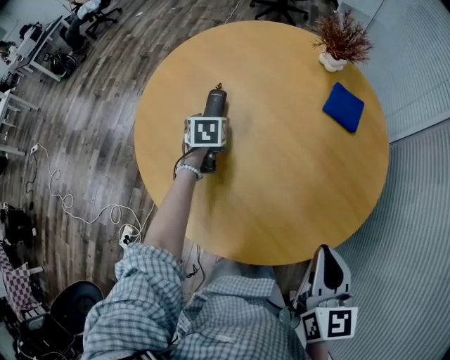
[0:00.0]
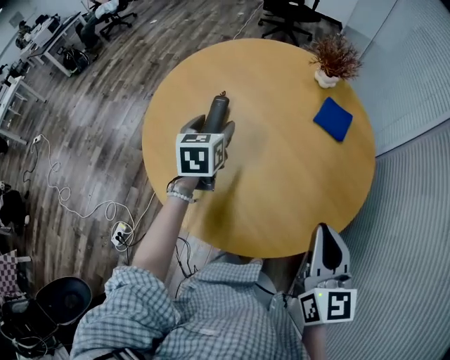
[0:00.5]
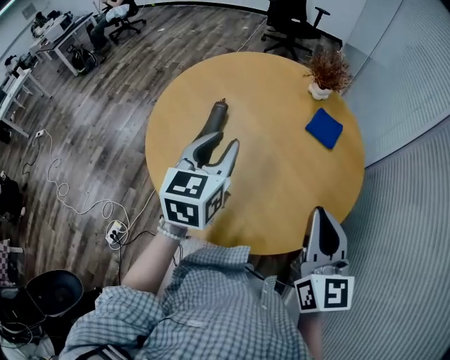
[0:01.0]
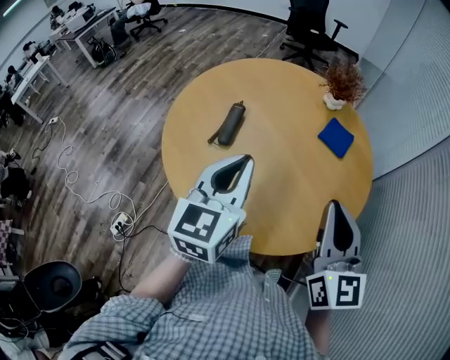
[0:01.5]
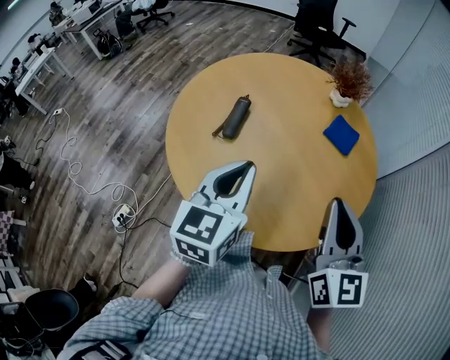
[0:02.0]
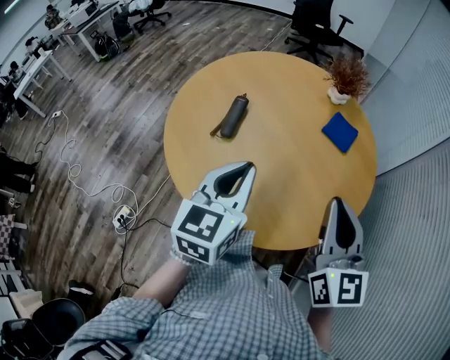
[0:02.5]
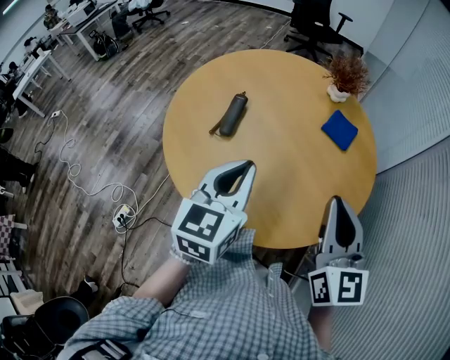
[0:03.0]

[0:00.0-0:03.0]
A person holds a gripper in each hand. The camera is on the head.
0:00.0 to 0:01.5: The right gripper moves upward, some 15 cm, and rotates about 30 degrees. The left gripper moves upward and backward, roughly 40 cm, angles its fingers upward, by some 40 degrees, and closes its fingers.
0:01.5 to 0:03.0: The grippers stay close to where they were, moving slightly.

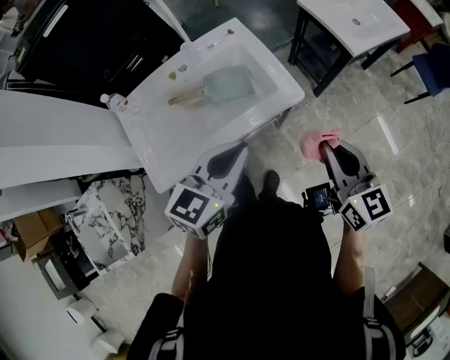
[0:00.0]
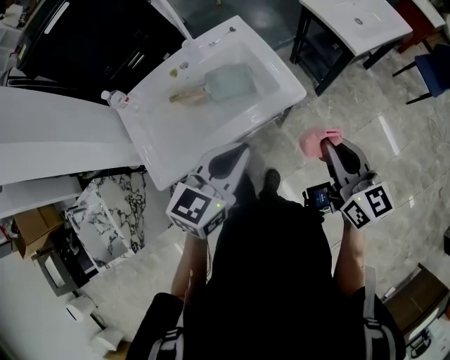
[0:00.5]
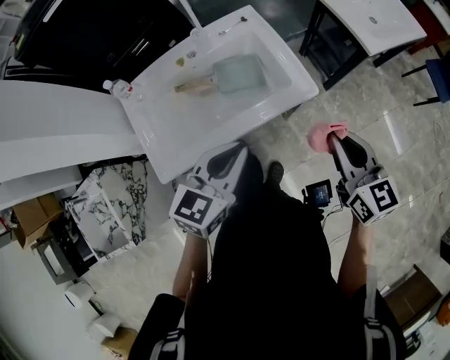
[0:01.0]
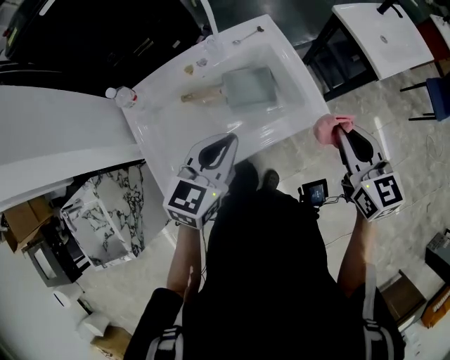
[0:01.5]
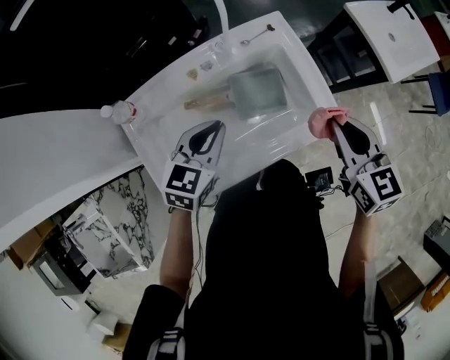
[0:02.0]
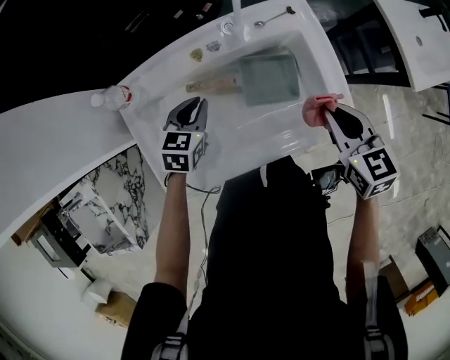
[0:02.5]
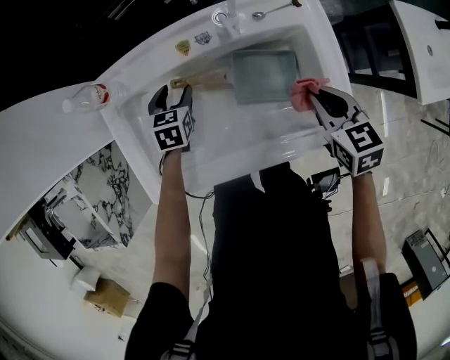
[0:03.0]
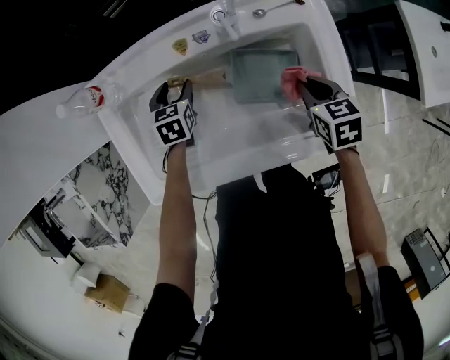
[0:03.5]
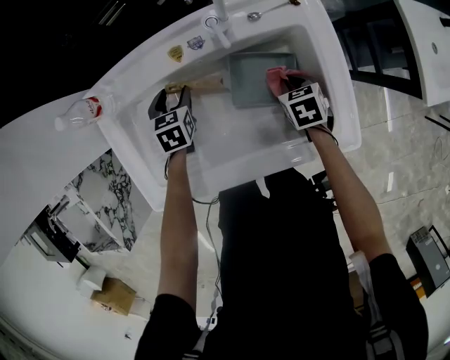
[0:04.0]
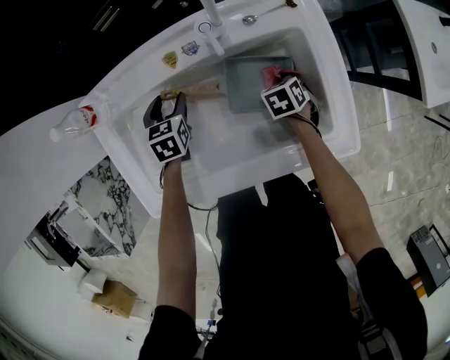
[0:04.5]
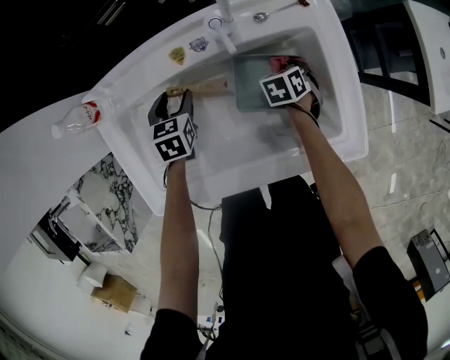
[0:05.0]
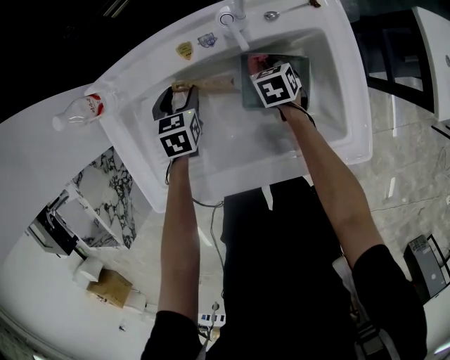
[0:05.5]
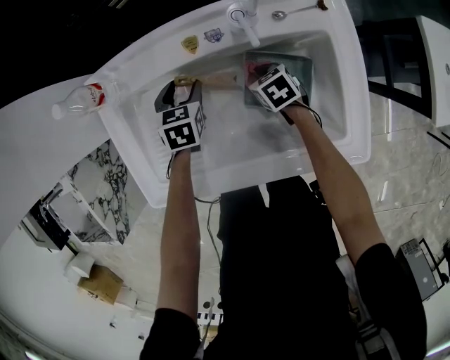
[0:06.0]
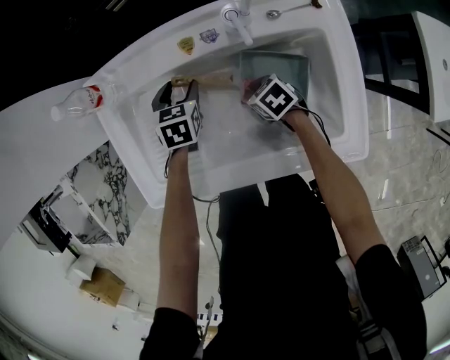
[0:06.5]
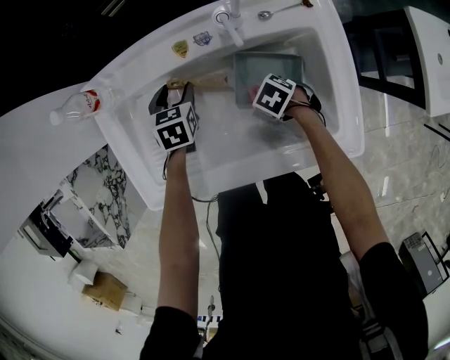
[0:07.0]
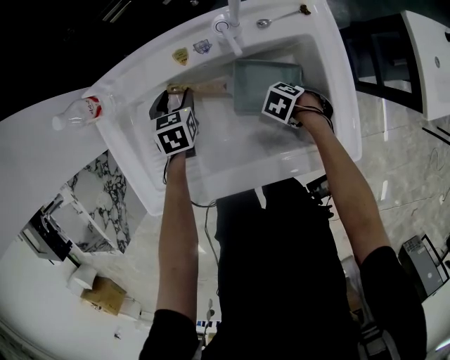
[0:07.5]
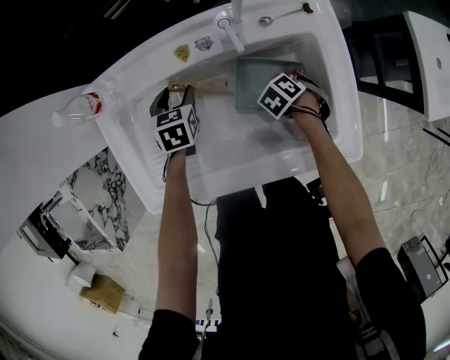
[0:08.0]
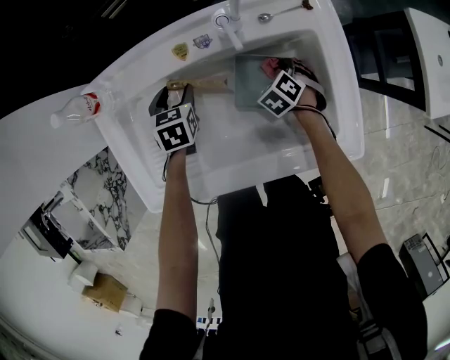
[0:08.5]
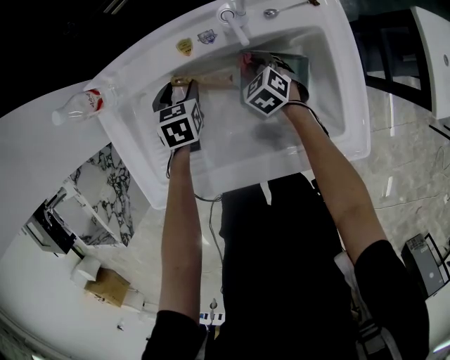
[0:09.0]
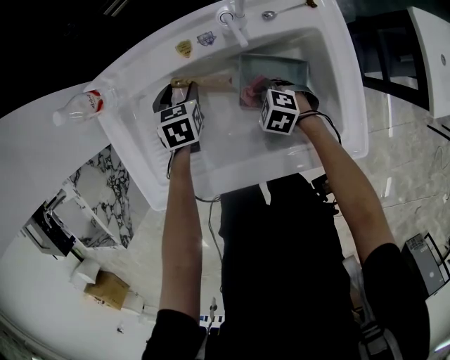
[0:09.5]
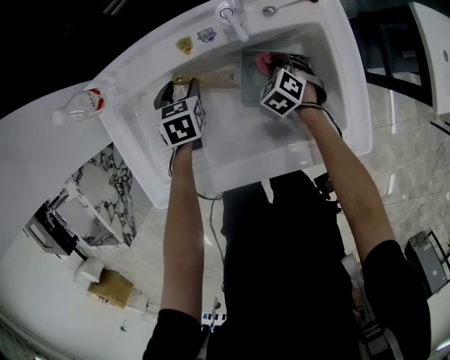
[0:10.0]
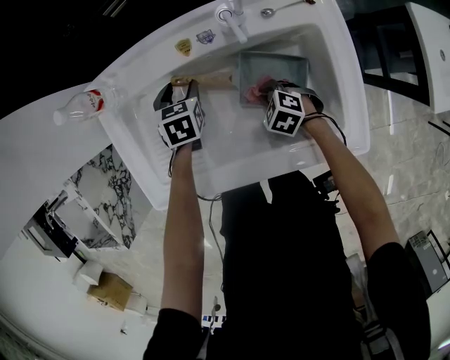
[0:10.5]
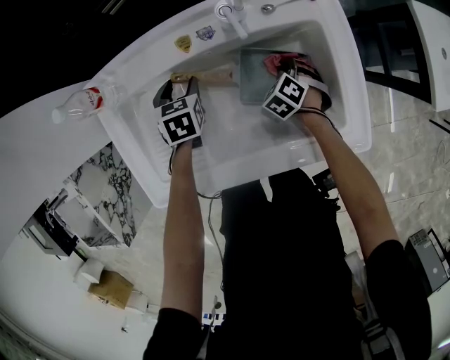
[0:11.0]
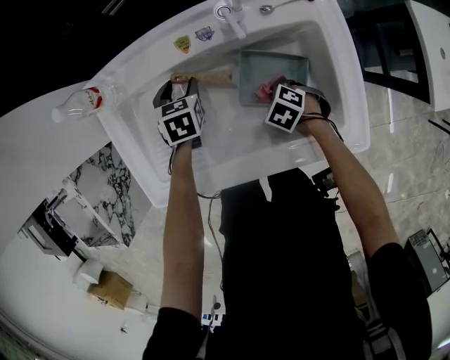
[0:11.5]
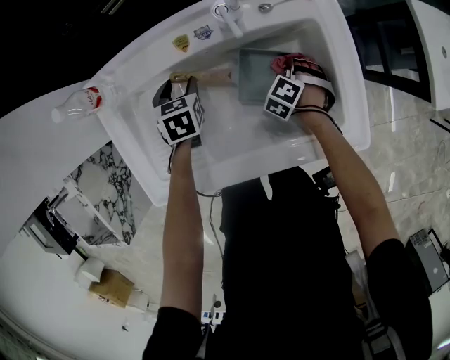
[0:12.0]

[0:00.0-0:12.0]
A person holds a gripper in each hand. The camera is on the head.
0:00.0 to 0:02.0: The right gripper goes about 25 cm forward and to the left; the left gripper travels to the left, forward and downward by approximately 30 cm.
0:02.0 to 0:04.0: Both grippers travel together downward, approximately 30 cm. The left gripper swivels about 50 degrees, and opens up; the right gripper points its fingers roughly 40 degrees further downward.
0:04.0 to 0:06.0: The right gripper moves some 15 cm.
0:06.0 to 0:08.0: The right gripper moves some 15 cm, and swivels some 40 degrees.
0:08.0 to 0:10.0: The right gripper turns by about 30 degrees.
0:10.0 to 0:12.0: The right gripper turns by about 30 degrees.

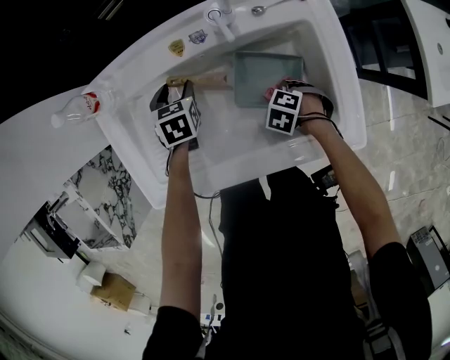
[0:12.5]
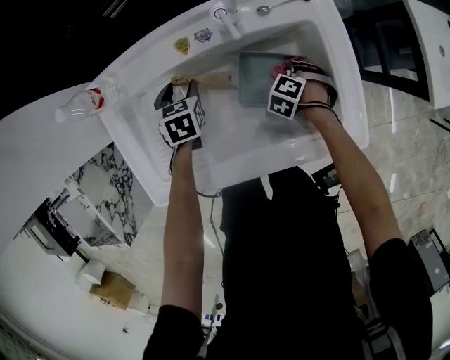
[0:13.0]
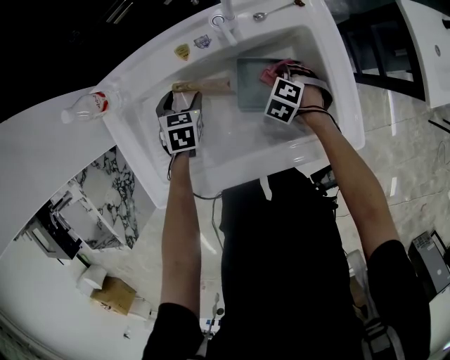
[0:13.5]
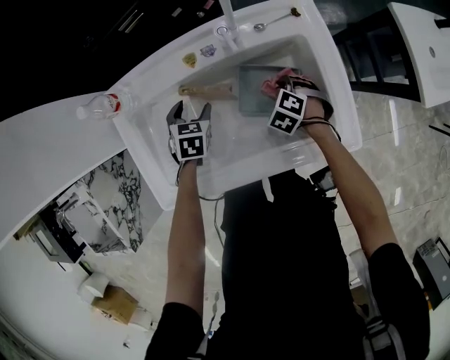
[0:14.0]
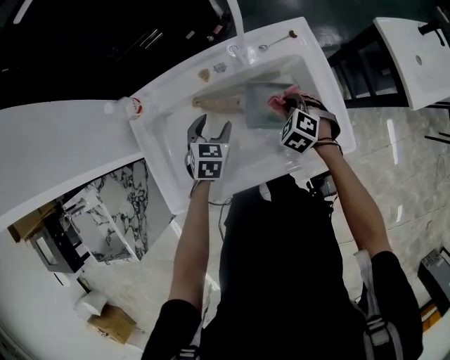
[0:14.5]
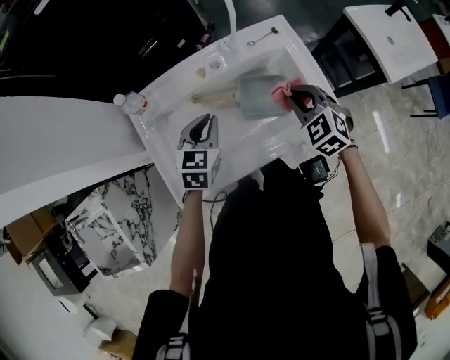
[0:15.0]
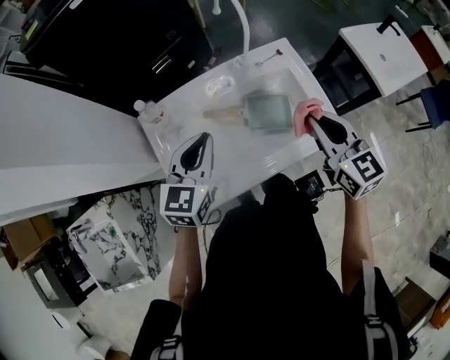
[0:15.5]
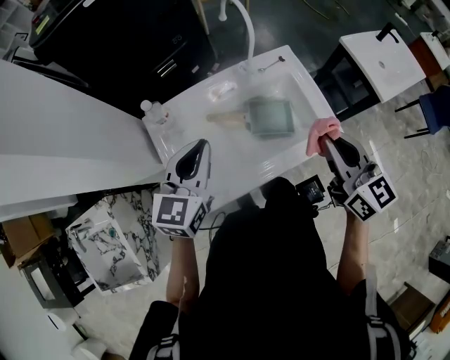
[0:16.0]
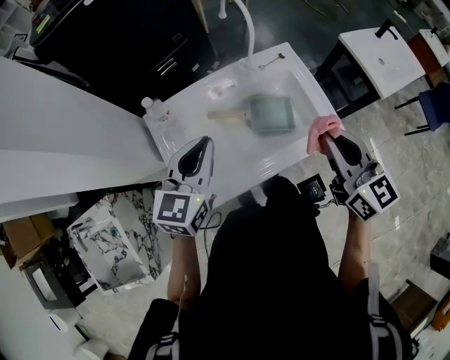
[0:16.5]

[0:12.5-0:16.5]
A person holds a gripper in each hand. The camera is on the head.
0:12.5 to 0:14.5: The right gripper travels upward by about 15 cm, and turns by some 30 degrees. Meanwhile the left gripper moves about 15 cm, and changes its angle by about 20 degrees.
0:14.5 to 0:16.5: The right gripper shifts approximately 40 cm upward and backward, and tips its fingers upward by approximately 50 degrees. The left gripper heads upward, covering roughly 30 cm, points its fingers some 40 degrees further upward, and closes its fingers.

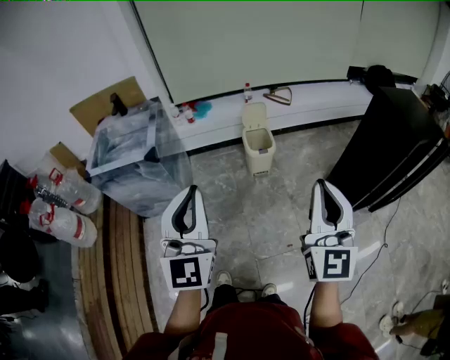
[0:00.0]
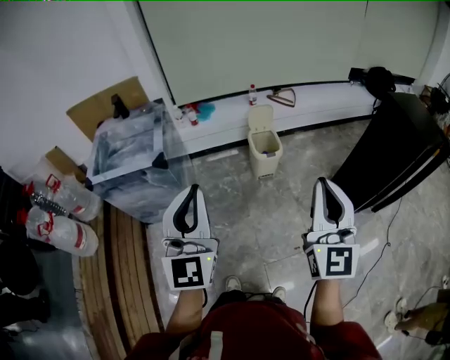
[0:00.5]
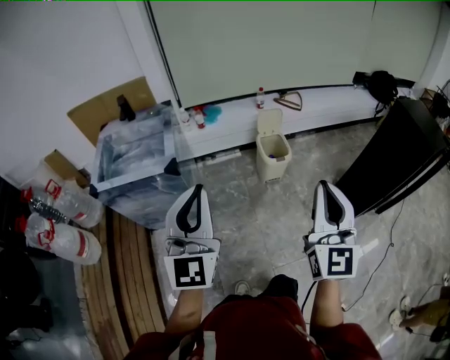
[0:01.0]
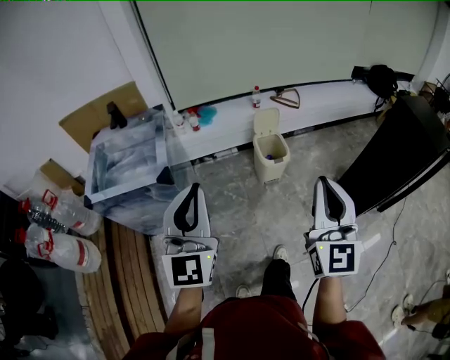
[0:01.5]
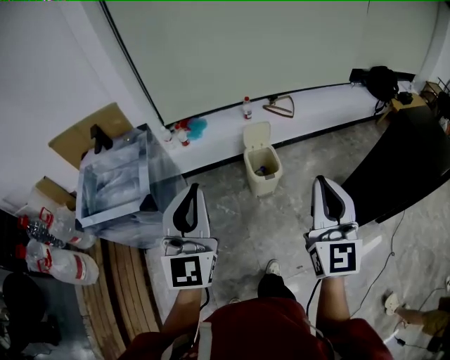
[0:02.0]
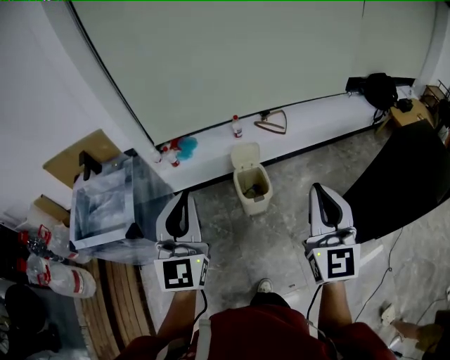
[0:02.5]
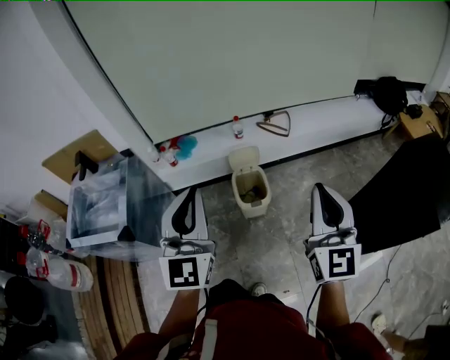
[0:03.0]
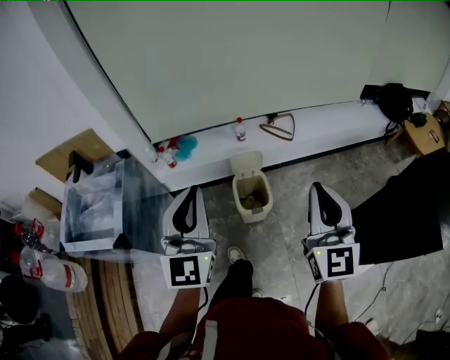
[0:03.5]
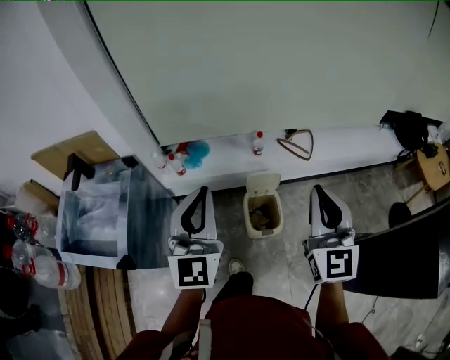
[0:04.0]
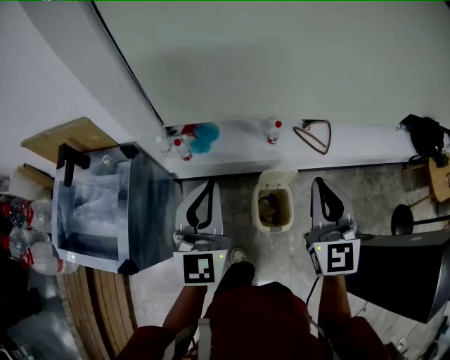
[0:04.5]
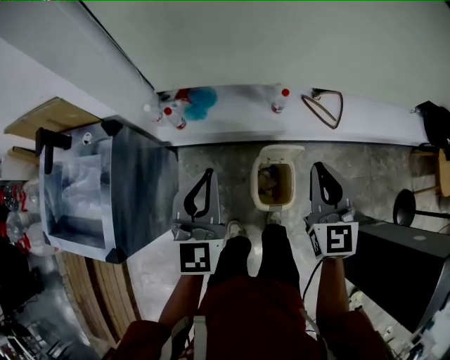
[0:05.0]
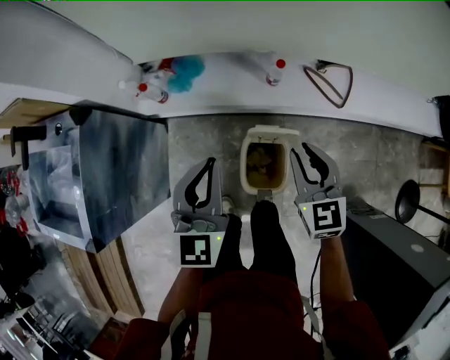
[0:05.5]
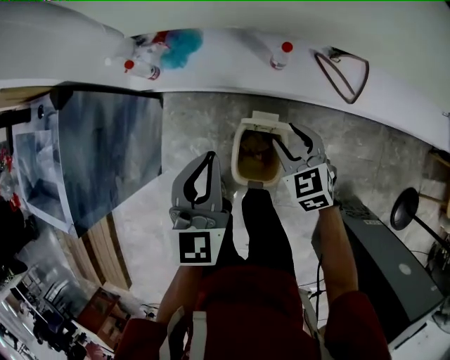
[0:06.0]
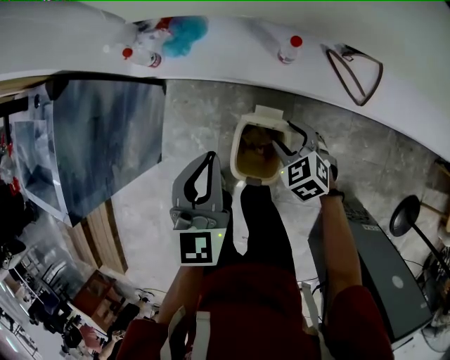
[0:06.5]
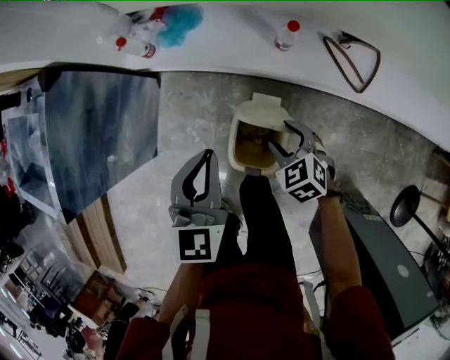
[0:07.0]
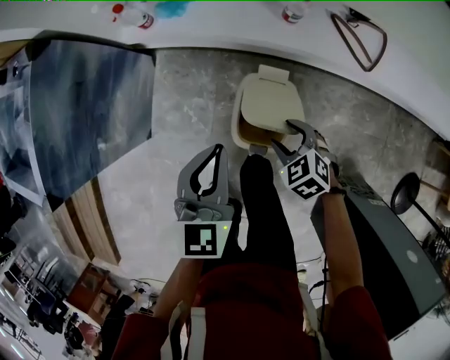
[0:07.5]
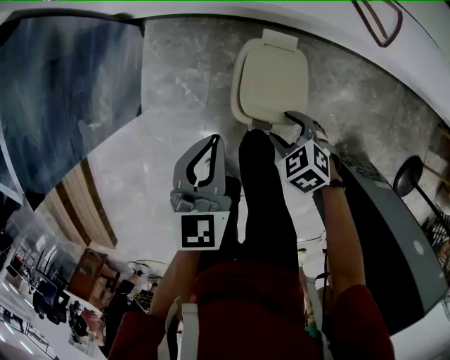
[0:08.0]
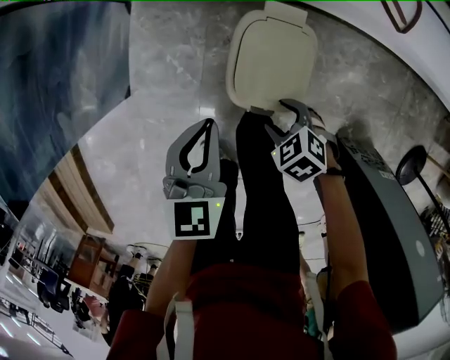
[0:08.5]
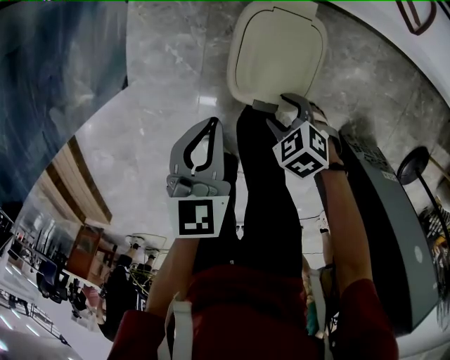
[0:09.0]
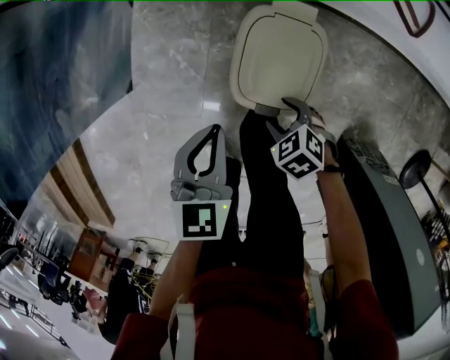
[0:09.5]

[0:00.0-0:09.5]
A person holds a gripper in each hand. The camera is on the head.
0:00.0 to 0:02.0: The two grippers go some 25 cm forward.
0:02.0 to 0:04.0: The two grippers go roughly 35 cm forward.
0:04.0 to 0:05.5: Both grippers travel together downward and forward, roughly 35 cm. The right gripper points its fingers roughly 30 degrees further downward, and opens its fingers. The left gripper turns by approximately 20 degrees.
0:05.5 to 0:07.5: The right gripper moves downward and backward, roughly 30 cm, angles its fingers downward, by about 40 degrees, and opens. The left gripper goes roughly 20 cm downward and backward.
0:07.5 to 0:09.5: The right gripper goes roughly 20 cm downward, backward and to the left. Meanwhile the left gripper is displaced downward by about 20 cm.
